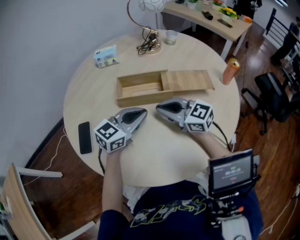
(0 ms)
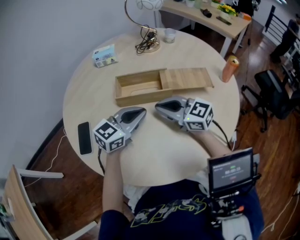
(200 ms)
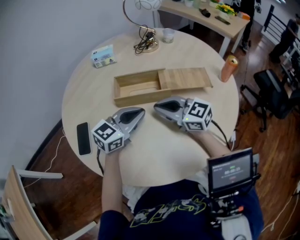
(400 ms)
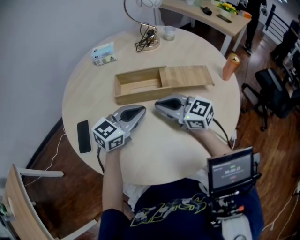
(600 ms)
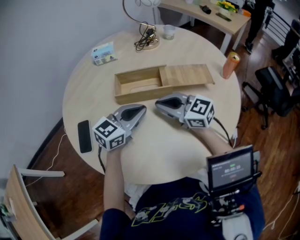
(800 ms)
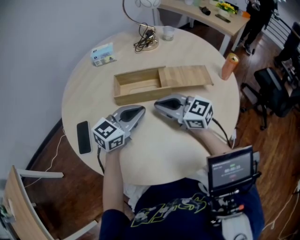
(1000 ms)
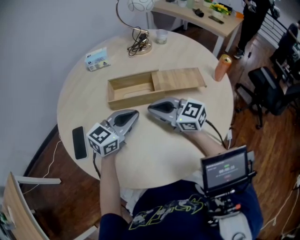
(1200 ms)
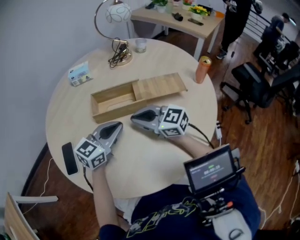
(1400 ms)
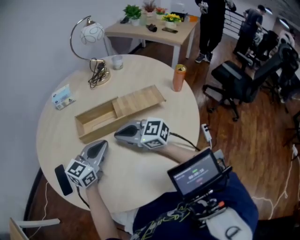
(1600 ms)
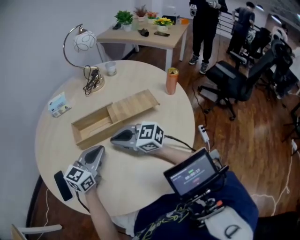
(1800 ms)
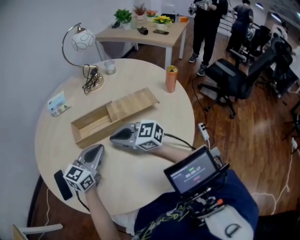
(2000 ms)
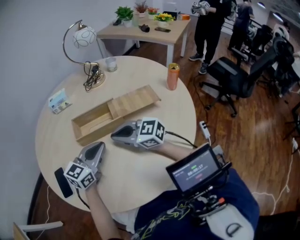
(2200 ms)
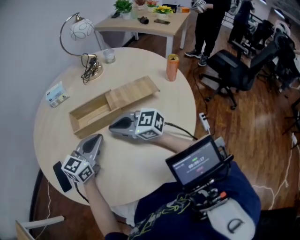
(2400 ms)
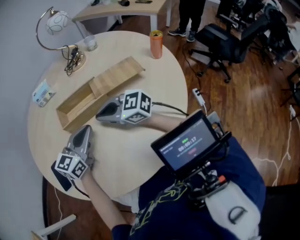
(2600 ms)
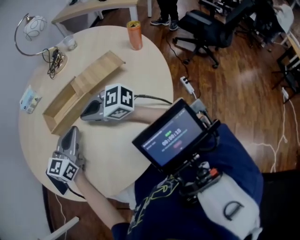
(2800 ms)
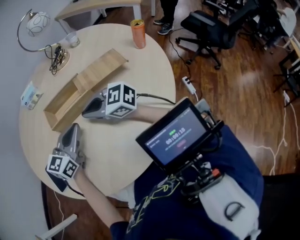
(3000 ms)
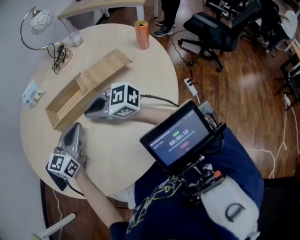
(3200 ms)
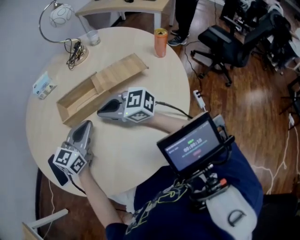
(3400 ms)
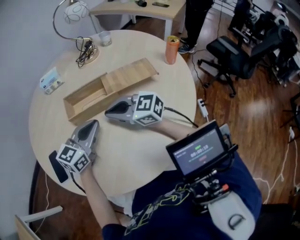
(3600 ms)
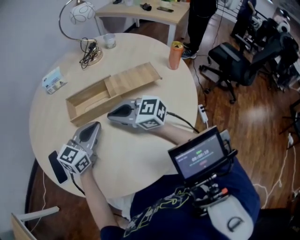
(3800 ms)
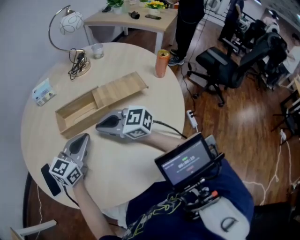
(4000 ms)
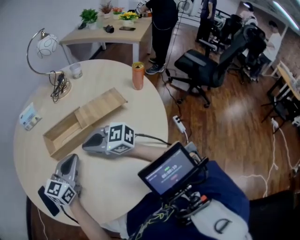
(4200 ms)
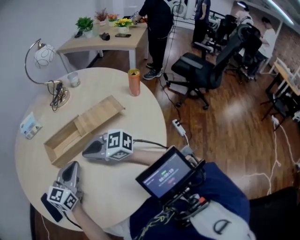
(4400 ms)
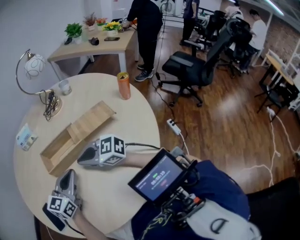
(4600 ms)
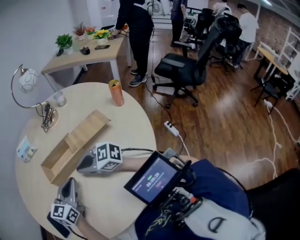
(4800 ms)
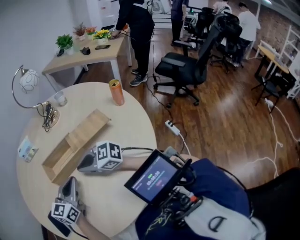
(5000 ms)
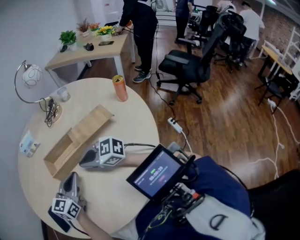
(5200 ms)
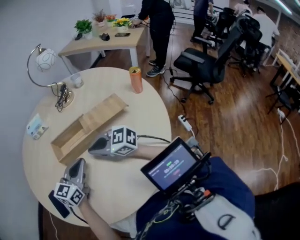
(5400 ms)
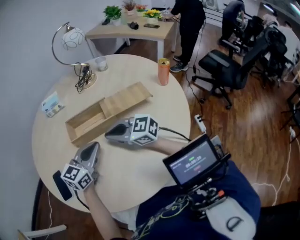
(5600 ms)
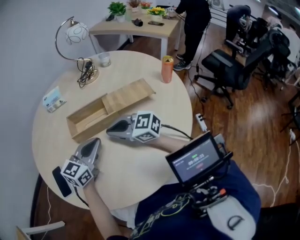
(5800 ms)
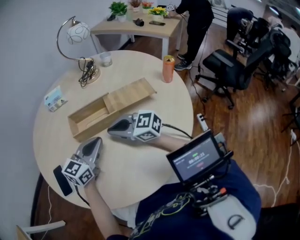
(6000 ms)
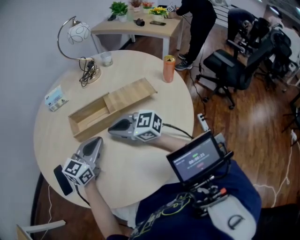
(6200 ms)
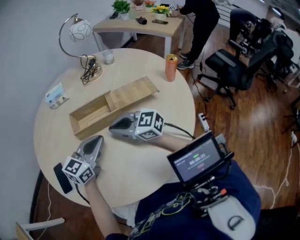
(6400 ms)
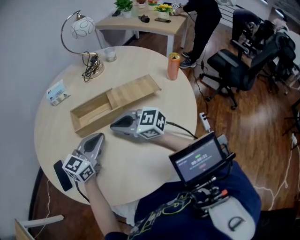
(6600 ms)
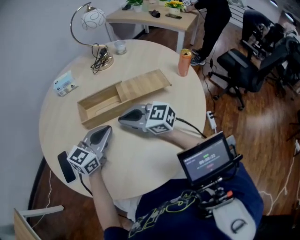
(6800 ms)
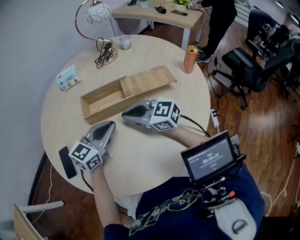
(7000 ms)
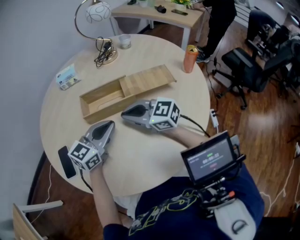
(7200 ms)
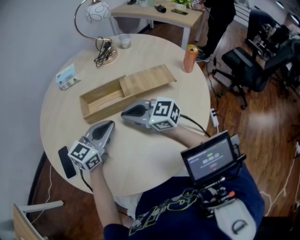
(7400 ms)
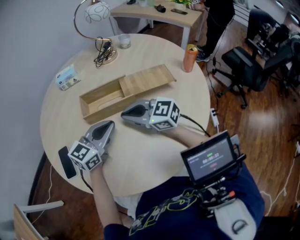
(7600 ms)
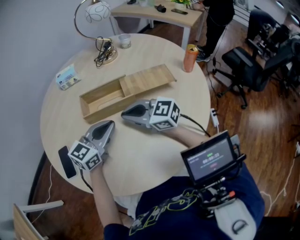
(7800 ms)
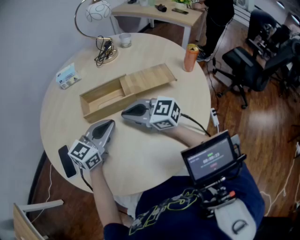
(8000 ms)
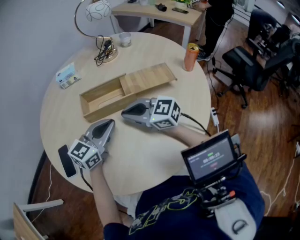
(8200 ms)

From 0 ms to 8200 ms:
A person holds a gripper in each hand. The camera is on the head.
From 0 ms to 1600 ms: Both grippers stay put.
From 1600 ms to 5000 ms: Both grippers stay put.
From 5000 ms to 6600 ms: Neither gripper changes place.
From 6600 ms to 8200 ms: Both grippers stay about where they are.

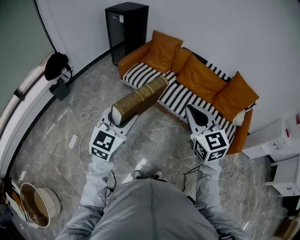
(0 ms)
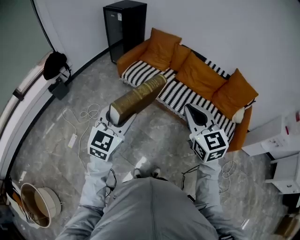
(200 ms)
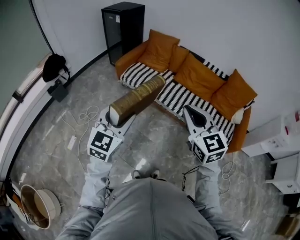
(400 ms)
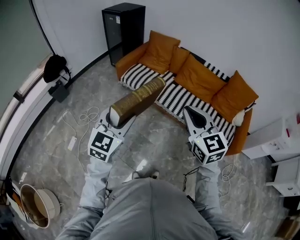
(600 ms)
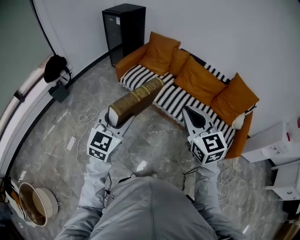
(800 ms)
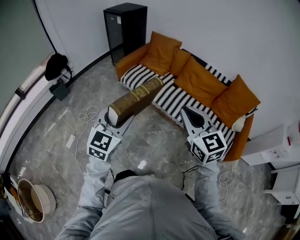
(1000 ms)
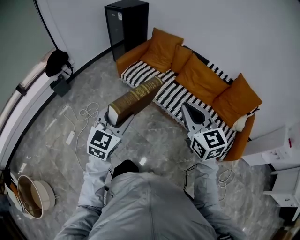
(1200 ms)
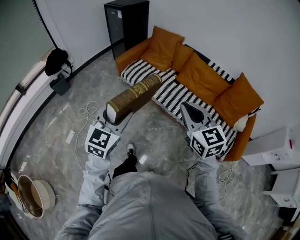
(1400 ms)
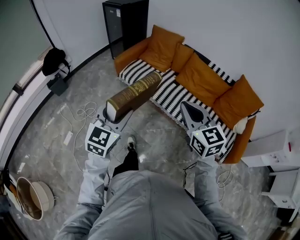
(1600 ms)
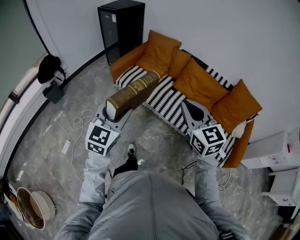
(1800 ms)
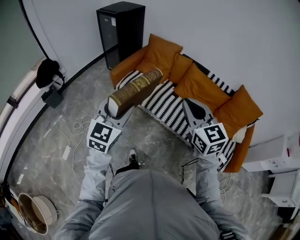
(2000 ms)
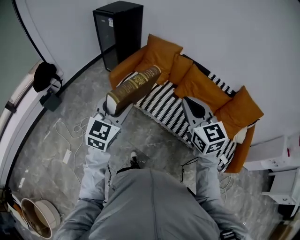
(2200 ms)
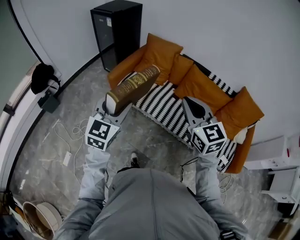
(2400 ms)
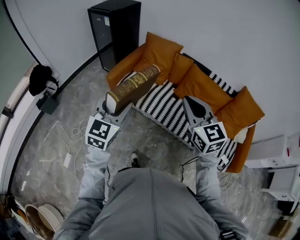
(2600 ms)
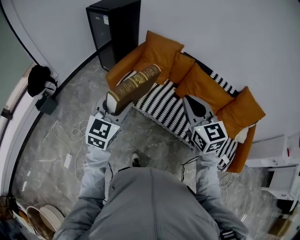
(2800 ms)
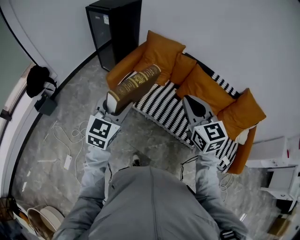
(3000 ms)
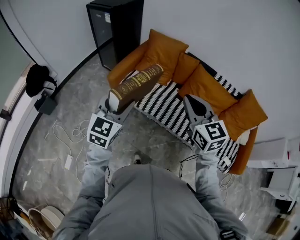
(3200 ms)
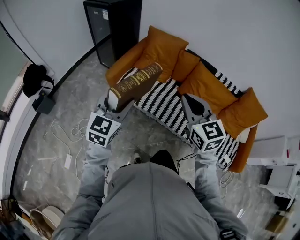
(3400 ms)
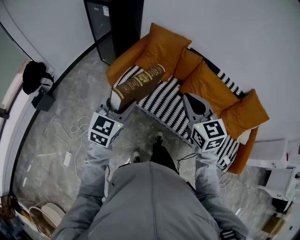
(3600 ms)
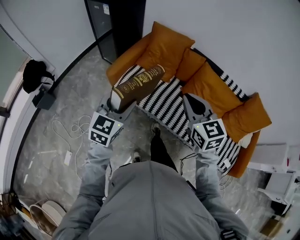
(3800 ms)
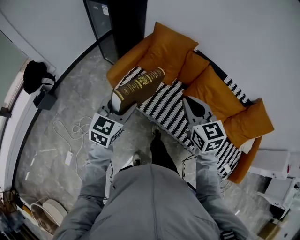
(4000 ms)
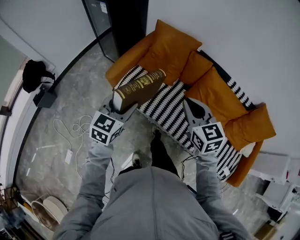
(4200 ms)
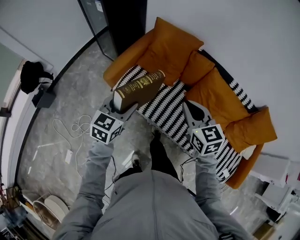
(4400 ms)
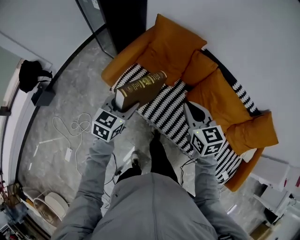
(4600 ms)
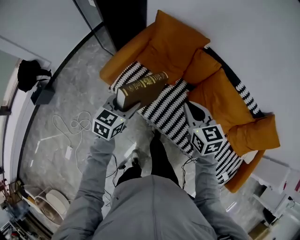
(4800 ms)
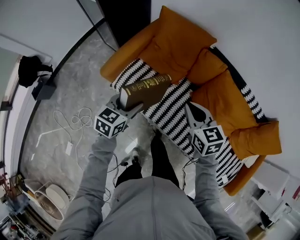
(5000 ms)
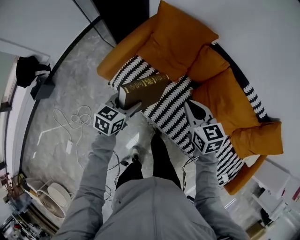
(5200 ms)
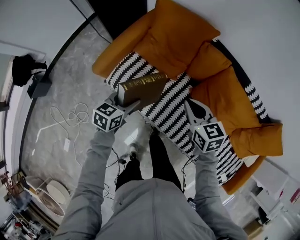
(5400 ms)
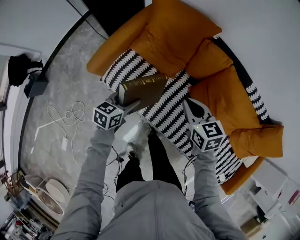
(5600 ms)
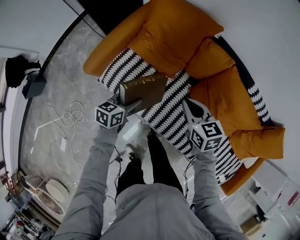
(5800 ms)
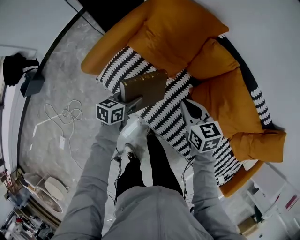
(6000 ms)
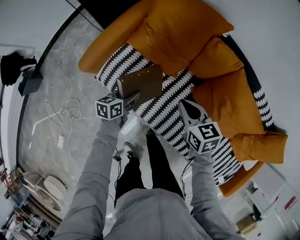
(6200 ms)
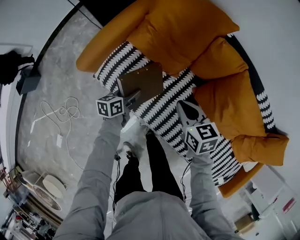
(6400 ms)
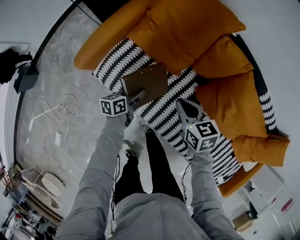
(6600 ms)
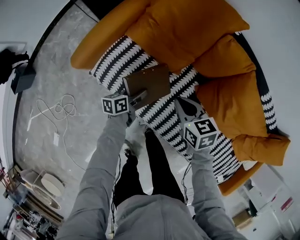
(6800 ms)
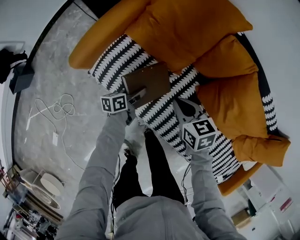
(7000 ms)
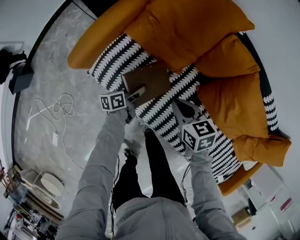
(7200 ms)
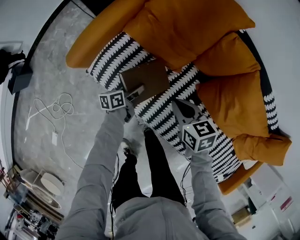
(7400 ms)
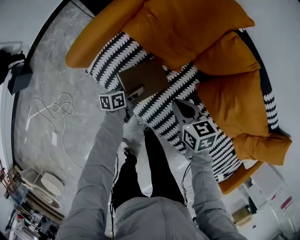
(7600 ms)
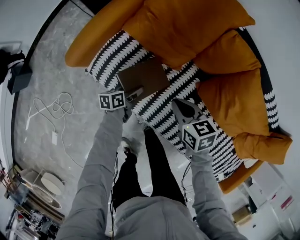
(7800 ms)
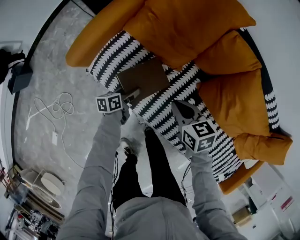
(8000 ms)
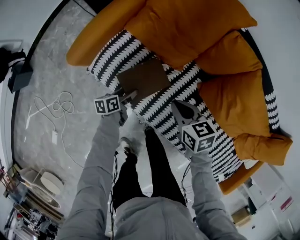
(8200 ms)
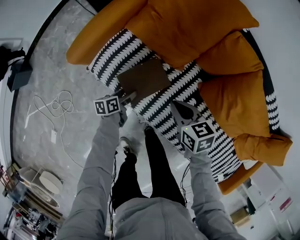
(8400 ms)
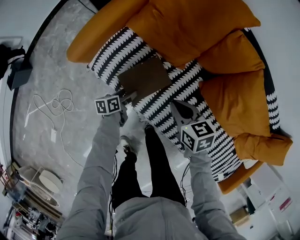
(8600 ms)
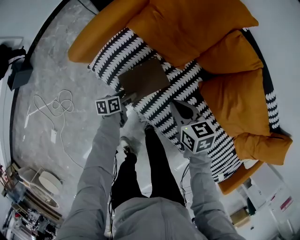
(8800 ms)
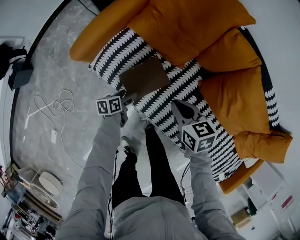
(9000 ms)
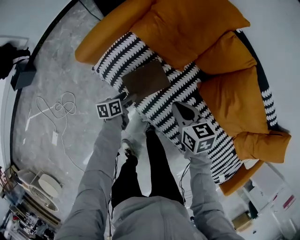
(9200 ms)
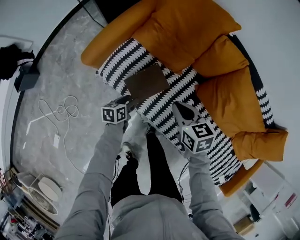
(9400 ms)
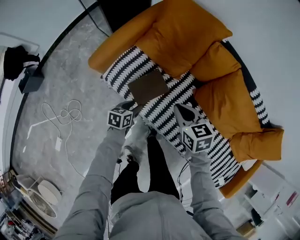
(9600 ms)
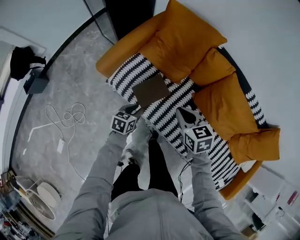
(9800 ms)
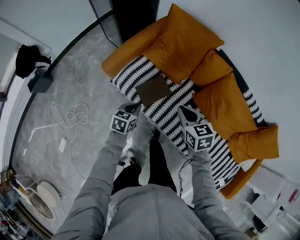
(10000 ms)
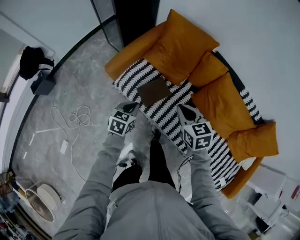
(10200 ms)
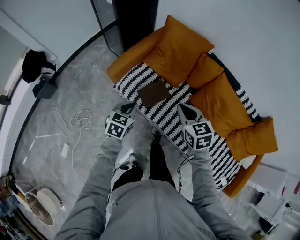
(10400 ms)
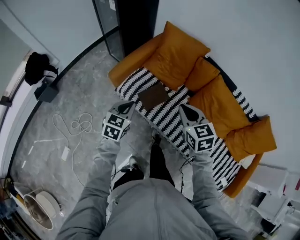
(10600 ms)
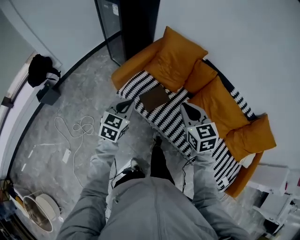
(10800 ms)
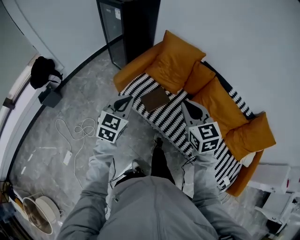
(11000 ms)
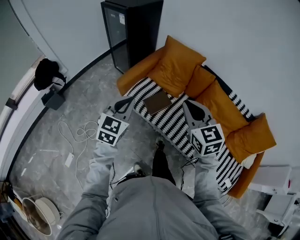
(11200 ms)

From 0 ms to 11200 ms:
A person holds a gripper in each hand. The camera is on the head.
From 0 ms to 1600 ms: Both grippers travel together forward and to the right, about 10 cm.
From 1600 ms to 3200 ms: The grippers both shift forward by some 30 cm.
From 3200 ms to 4800 ms: Both grippers travel together forward and downward, some 30 cm. The right gripper rotates some 20 degrees. Meanwhile the left gripper changes its angle by approximately 30 degrees.
From 4800 ms to 6400 ms: The two grippers go roughly 25 cm downward. The left gripper rotates around the line of its fingers by roughly 40 degrees, counterclockwise from behind.
From 6400 ms to 8000 ms: The grippers both shift downward by roughly 10 cm.
From 8000 ms to 9600 ms: The left gripper heads upward and backward, covering about 15 cm, swivels some 30 degrees, and closes its fingers; the right gripper shifts some 10 cm upward.
From 9600 ms to 11200 ms: The left gripper is displaced upward by approximately 40 cm, rotates roughly 50 degrees, and closes its fingers; the right gripper is displaced upward and backward by approximately 35 cm, and changes its angle by roughly 30 degrees.

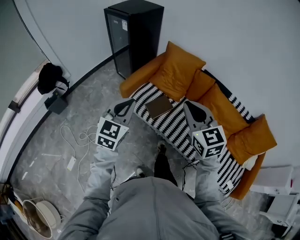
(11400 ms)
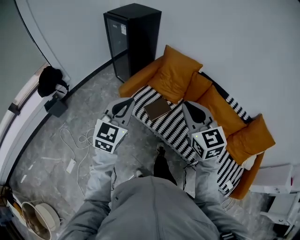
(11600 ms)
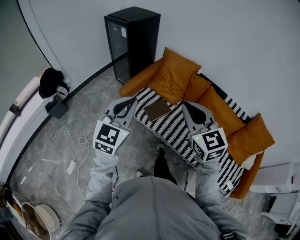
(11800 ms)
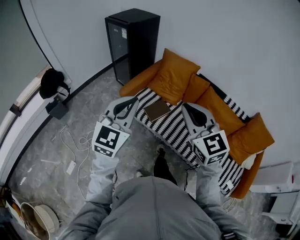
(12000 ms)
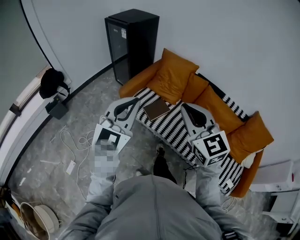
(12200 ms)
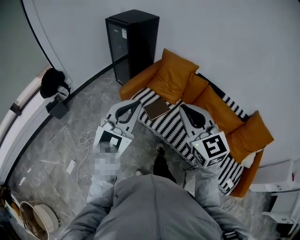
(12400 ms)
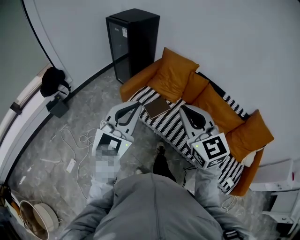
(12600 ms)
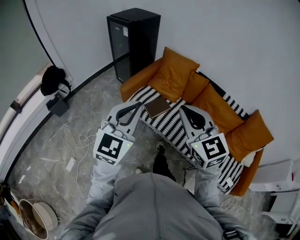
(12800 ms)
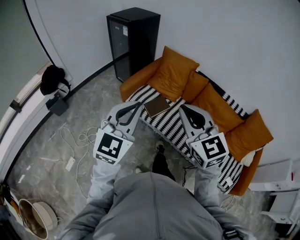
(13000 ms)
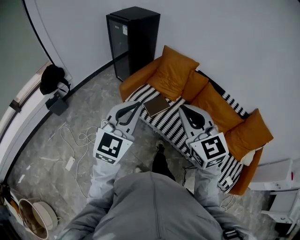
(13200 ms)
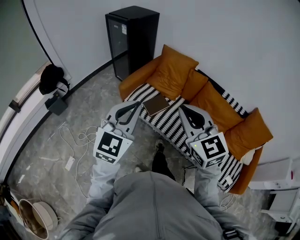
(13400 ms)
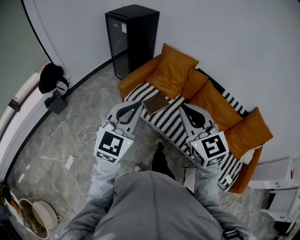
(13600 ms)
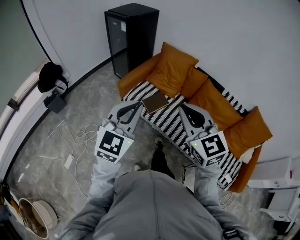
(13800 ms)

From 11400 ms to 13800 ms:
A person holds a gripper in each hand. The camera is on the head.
From 11400 ms to 12600 ms: Both grippers move backward and upward, some 15 cm.
From 12600 ms to 13800 ms: The grippers move only a little.

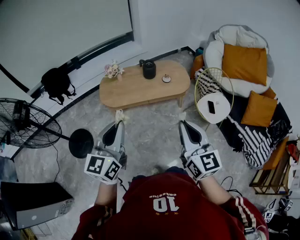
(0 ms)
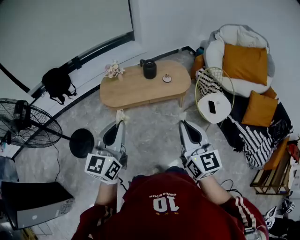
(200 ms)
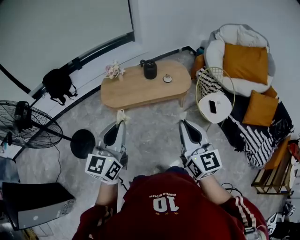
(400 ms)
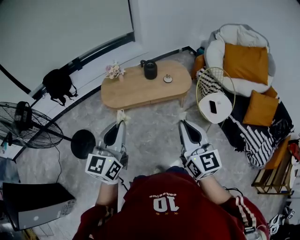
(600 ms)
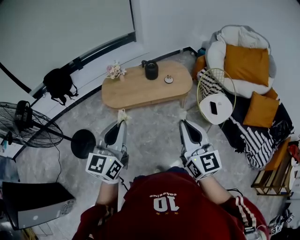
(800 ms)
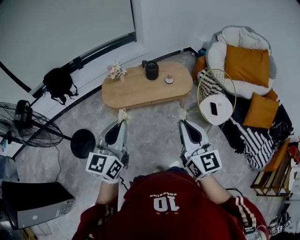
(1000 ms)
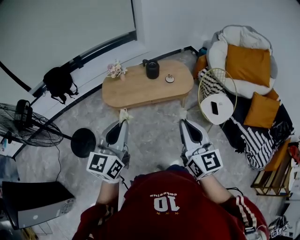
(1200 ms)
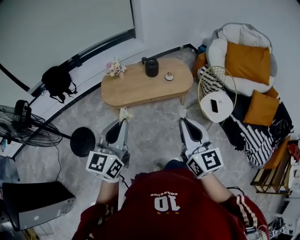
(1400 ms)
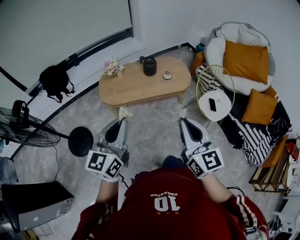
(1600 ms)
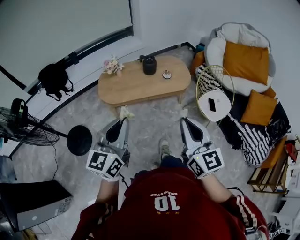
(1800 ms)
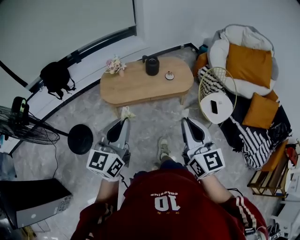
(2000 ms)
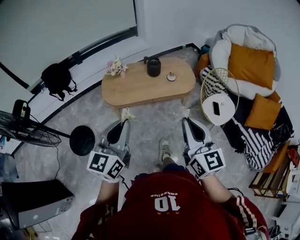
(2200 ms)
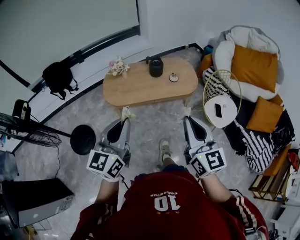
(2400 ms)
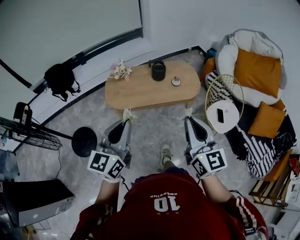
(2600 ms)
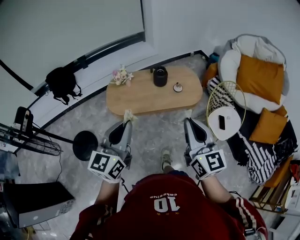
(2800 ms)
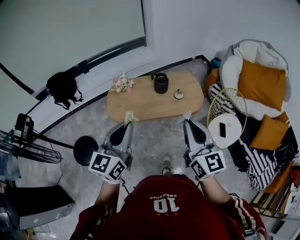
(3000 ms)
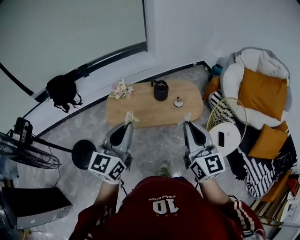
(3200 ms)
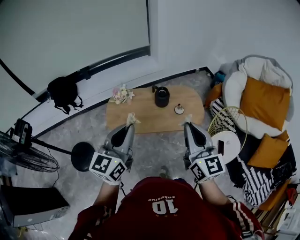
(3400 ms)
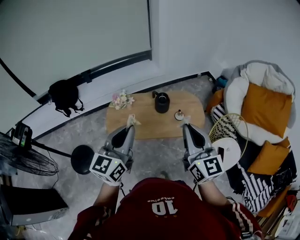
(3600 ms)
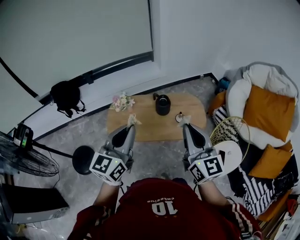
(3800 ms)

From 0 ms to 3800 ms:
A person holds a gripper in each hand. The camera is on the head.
From 0 ms to 1200 ms: The grippers move only a little.
From 1200 ms to 2600 ms: The two grippers go roughly 10 cm forward.
From 2600 ms to 3800 ms: The two grippers go approximately 25 cm forward.
